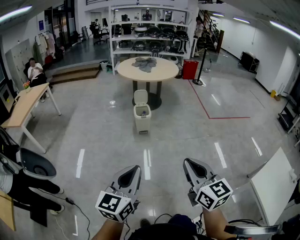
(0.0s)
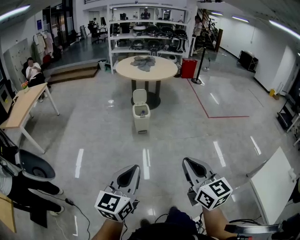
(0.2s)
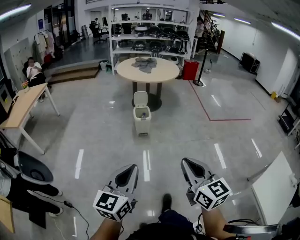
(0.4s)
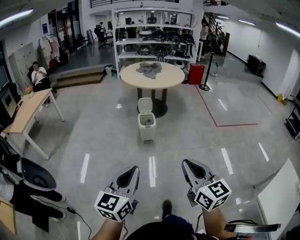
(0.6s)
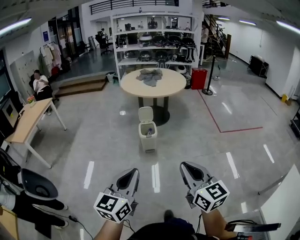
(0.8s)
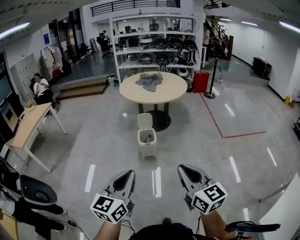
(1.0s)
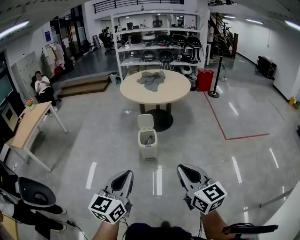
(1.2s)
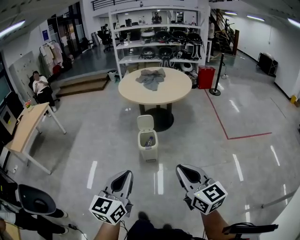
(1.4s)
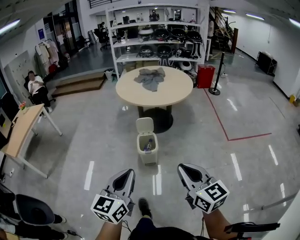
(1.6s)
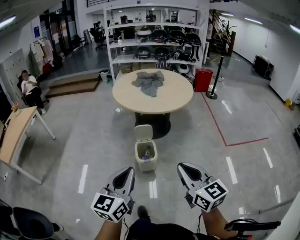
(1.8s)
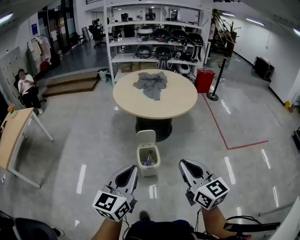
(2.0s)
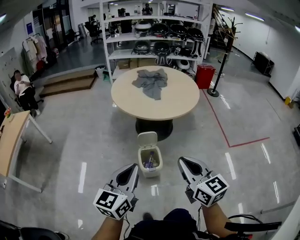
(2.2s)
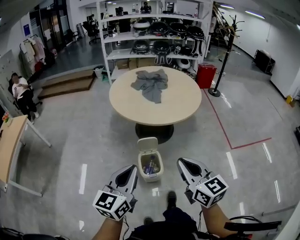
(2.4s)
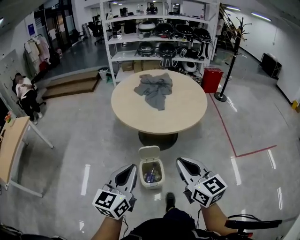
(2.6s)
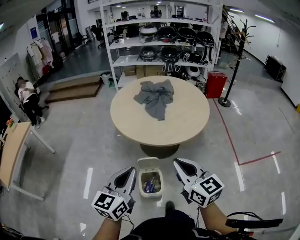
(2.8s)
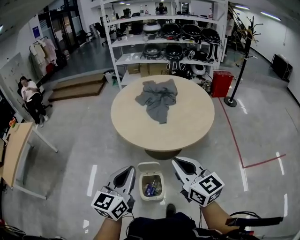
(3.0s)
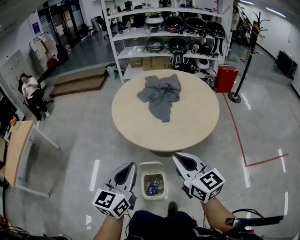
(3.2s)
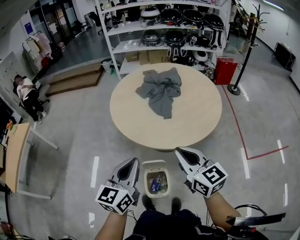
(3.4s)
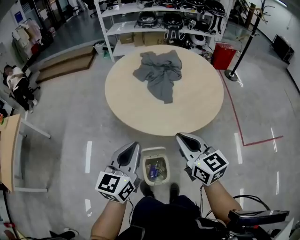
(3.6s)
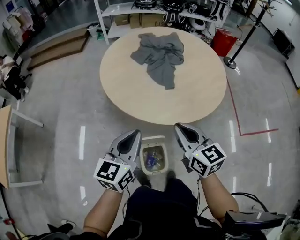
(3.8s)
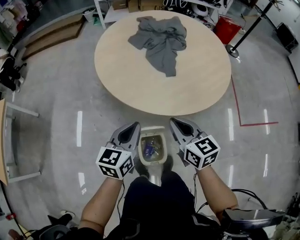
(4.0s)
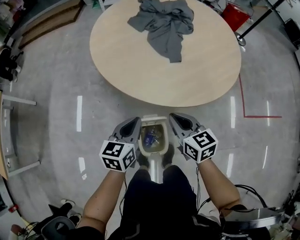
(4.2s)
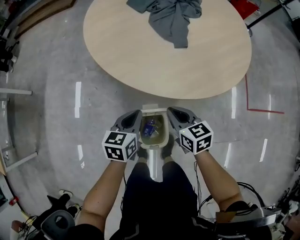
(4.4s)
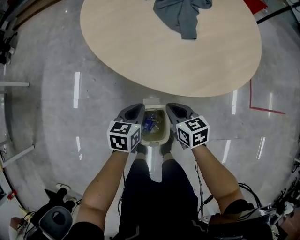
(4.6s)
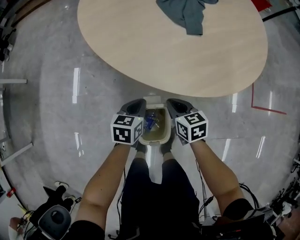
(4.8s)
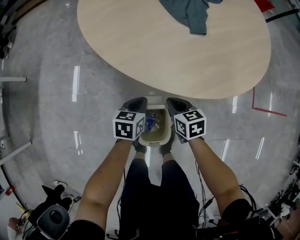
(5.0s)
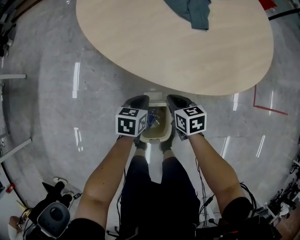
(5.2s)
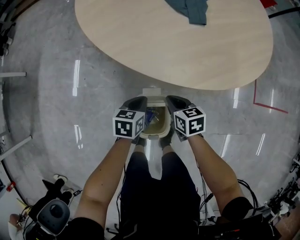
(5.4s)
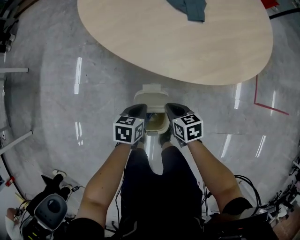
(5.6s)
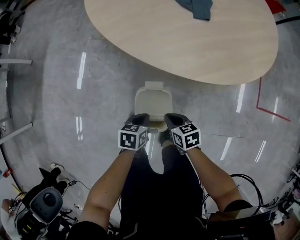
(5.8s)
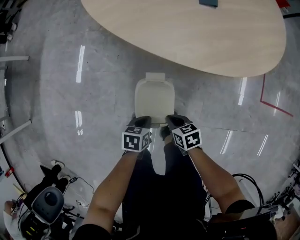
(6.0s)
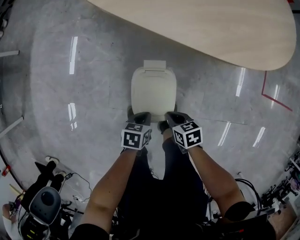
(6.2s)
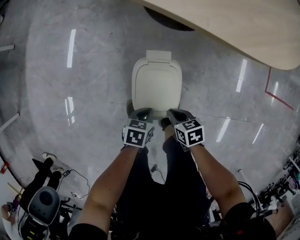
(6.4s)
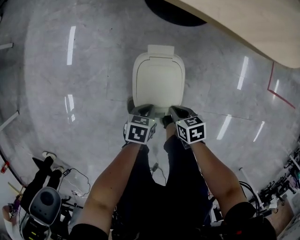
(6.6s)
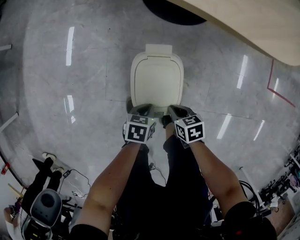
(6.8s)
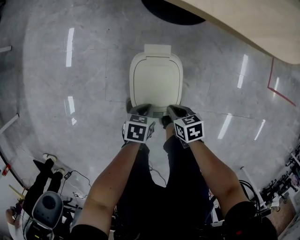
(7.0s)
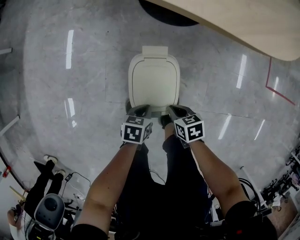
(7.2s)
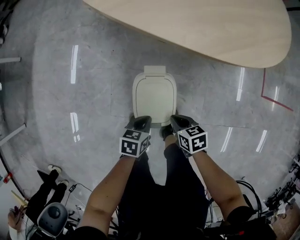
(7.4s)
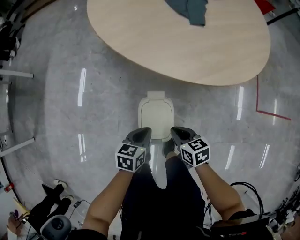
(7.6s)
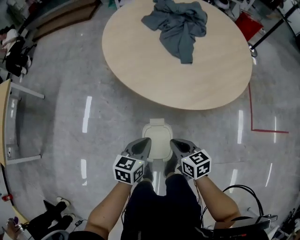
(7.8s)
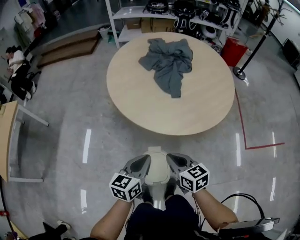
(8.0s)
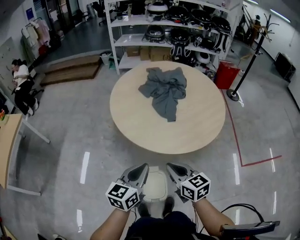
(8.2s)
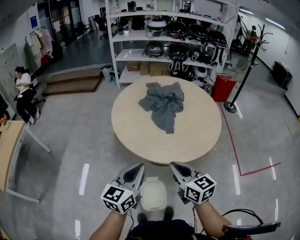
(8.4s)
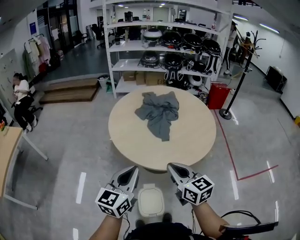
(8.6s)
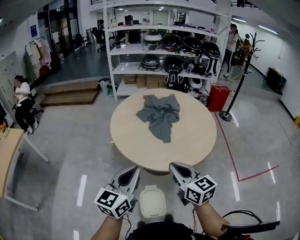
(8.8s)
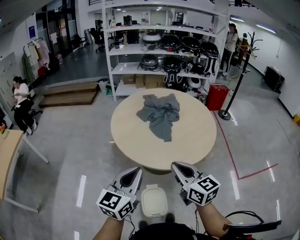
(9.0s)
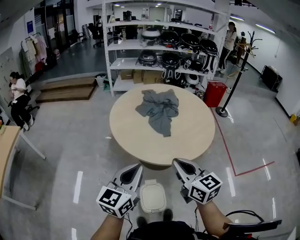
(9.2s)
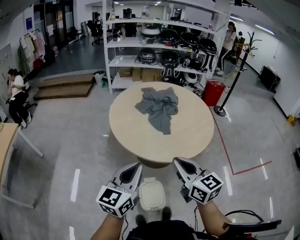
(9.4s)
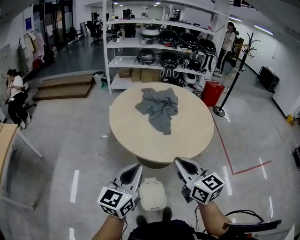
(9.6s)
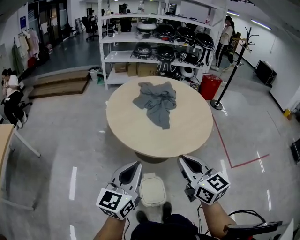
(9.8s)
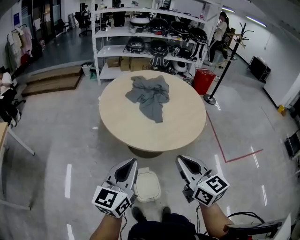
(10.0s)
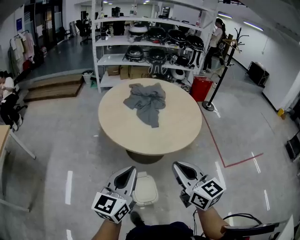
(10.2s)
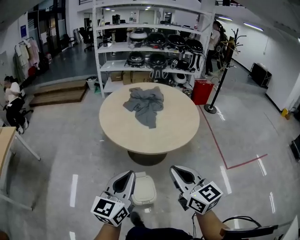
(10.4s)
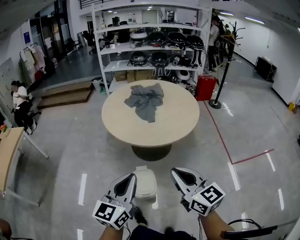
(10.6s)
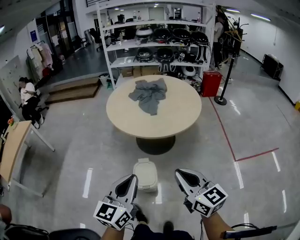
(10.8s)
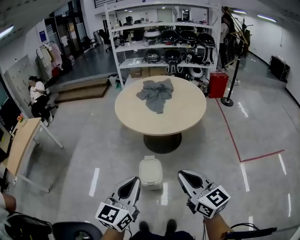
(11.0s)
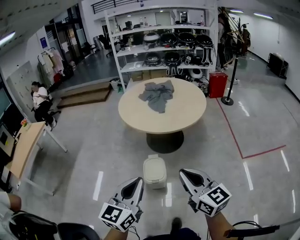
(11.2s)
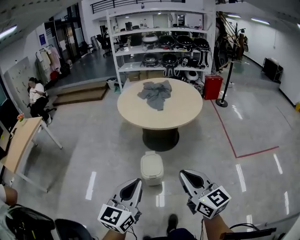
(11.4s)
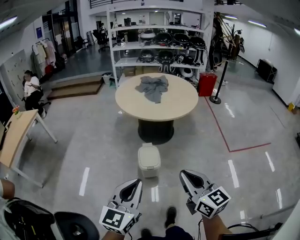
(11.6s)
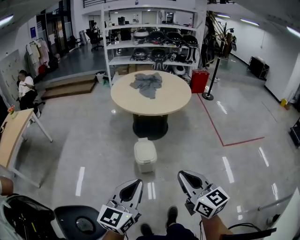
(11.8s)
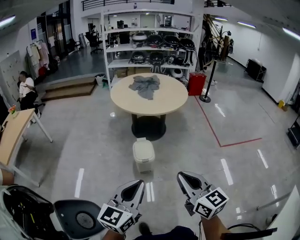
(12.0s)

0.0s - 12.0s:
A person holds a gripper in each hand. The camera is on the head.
0.0s - 1.6s: Both grippers are carried forward, some 40 cm.
1.6s - 3.0s: The pair of grippers is taken forward, roughly 50 cm.
3.0s - 4.4s: Both grippers move downward and forward, roughly 40 cm. The left gripper changes its angle by some 30 degrees, while the right gripper tilts its fingers approximately 30 degrees downward.
4.4s - 6.0s: Both grippers move downward and backward, roughly 30 cm. The right gripper turns by about 30 degrees. Meanwhile the left gripper changes its angle by some 30 degrees.
6.0s - 7.6s: Both grippers travel together upward, roughly 10 cm.
7.6s - 9.0s: The two grippers go about 50 cm upward. The right gripper angles its fingers upward, by approximately 40 degrees. Meanwhile the left gripper angles its fingers upward, by approximately 40 degrees.
9.0s - 10.4s: Both grippers move backward, approximately 15 cm.
10.4s - 12.0s: The pair of grippers is taken backward, about 50 cm.

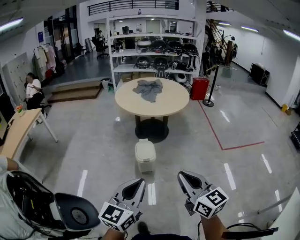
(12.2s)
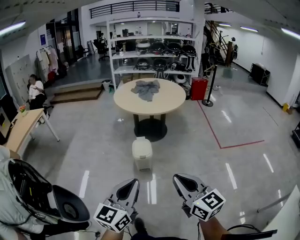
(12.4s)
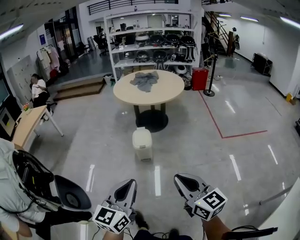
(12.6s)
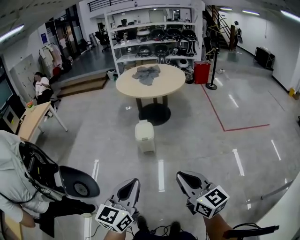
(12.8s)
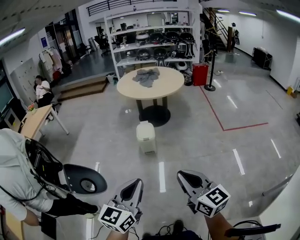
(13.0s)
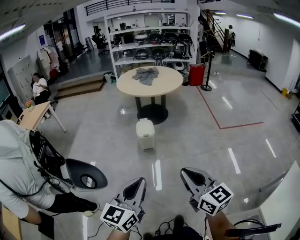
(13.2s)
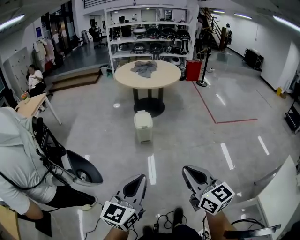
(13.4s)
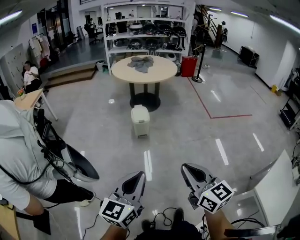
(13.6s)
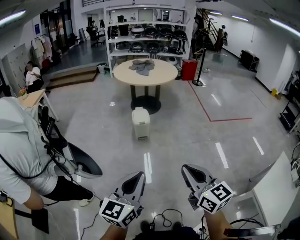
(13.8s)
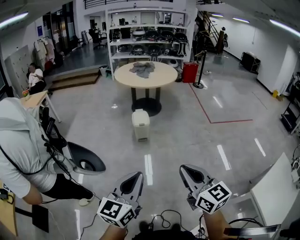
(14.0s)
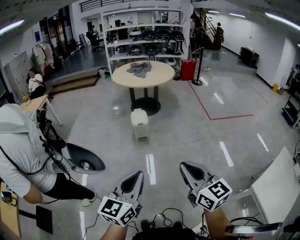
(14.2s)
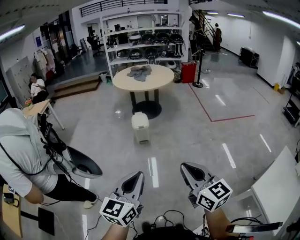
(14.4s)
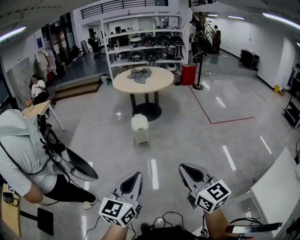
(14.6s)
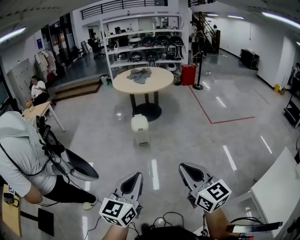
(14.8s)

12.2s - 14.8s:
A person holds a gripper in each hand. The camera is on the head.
12.2s - 13.4s: The grippers both shift backward by approximately 30 cm.
13.4s - 14.8s: The grippers both shift backward and to the right by some 10 cm.

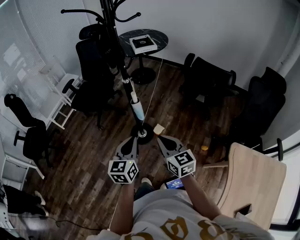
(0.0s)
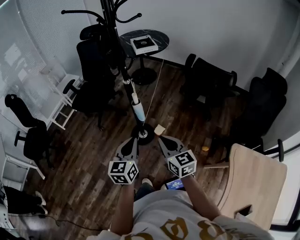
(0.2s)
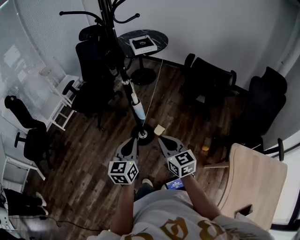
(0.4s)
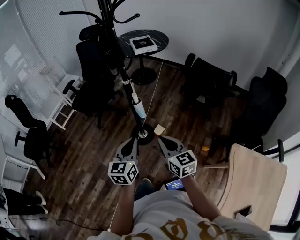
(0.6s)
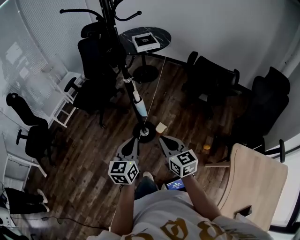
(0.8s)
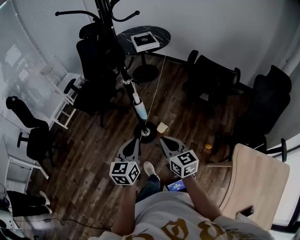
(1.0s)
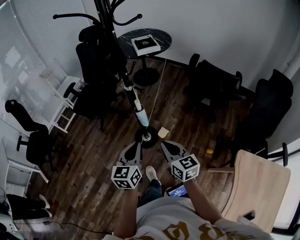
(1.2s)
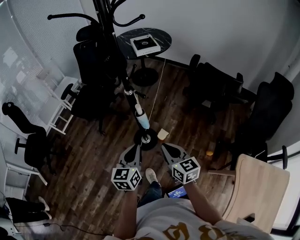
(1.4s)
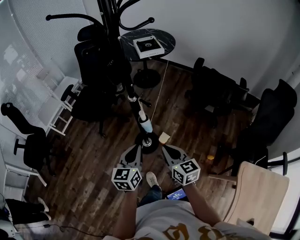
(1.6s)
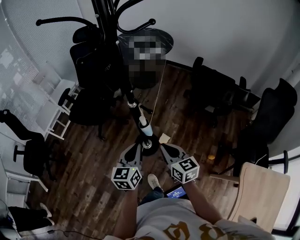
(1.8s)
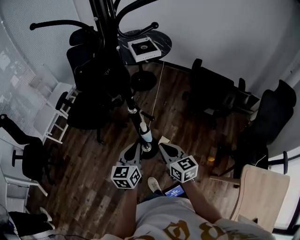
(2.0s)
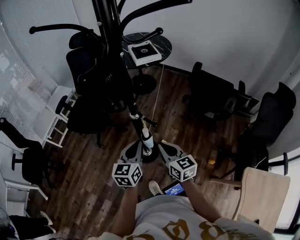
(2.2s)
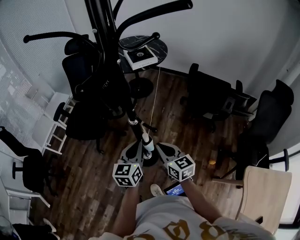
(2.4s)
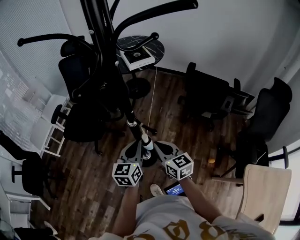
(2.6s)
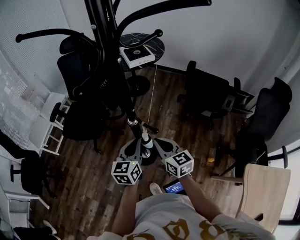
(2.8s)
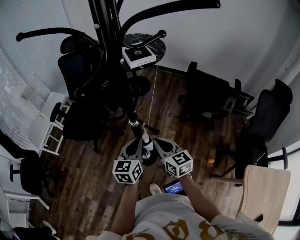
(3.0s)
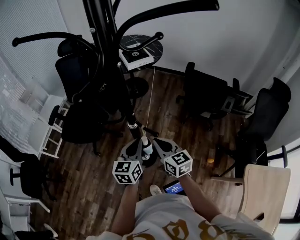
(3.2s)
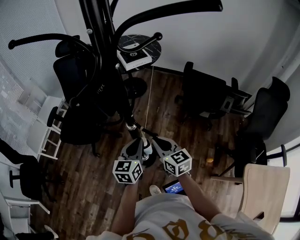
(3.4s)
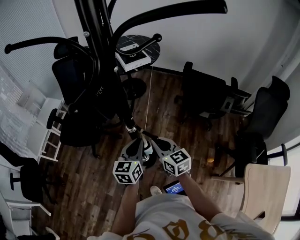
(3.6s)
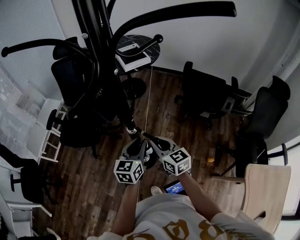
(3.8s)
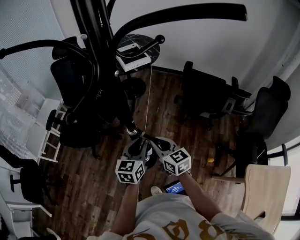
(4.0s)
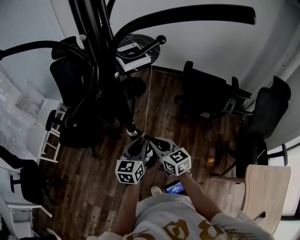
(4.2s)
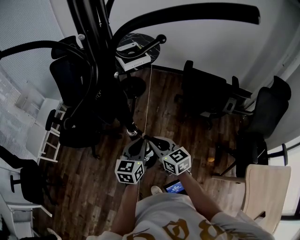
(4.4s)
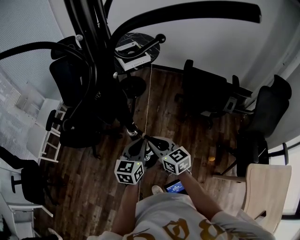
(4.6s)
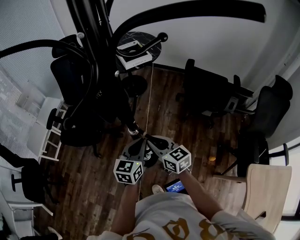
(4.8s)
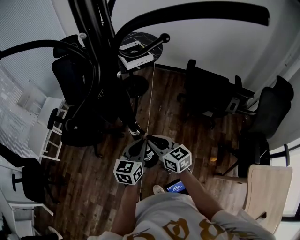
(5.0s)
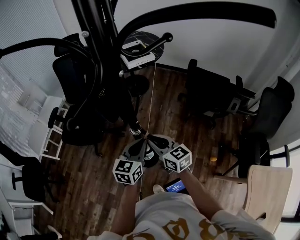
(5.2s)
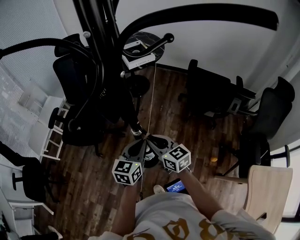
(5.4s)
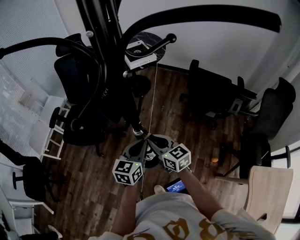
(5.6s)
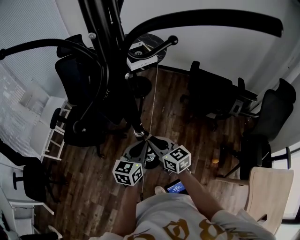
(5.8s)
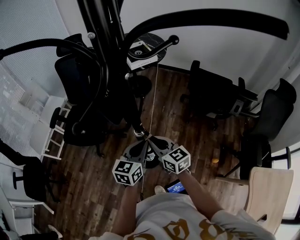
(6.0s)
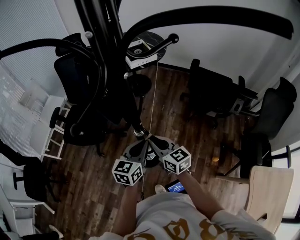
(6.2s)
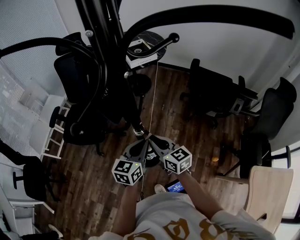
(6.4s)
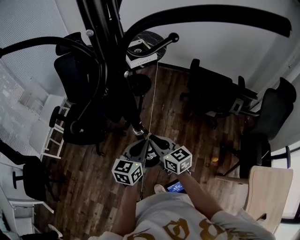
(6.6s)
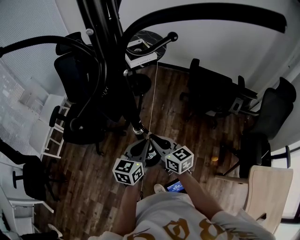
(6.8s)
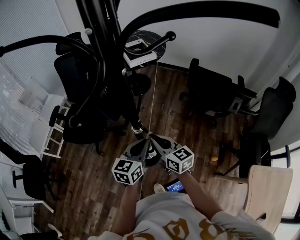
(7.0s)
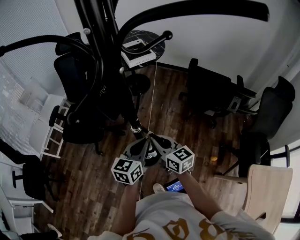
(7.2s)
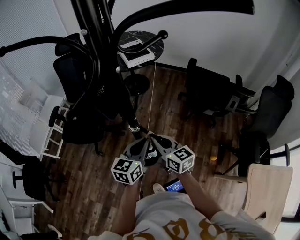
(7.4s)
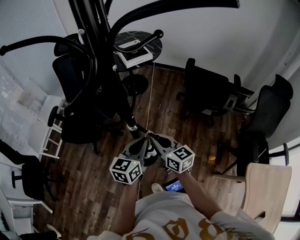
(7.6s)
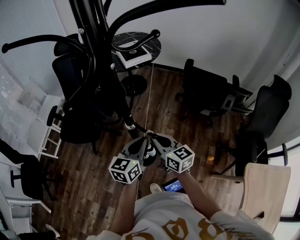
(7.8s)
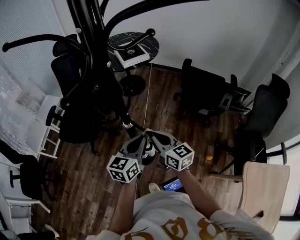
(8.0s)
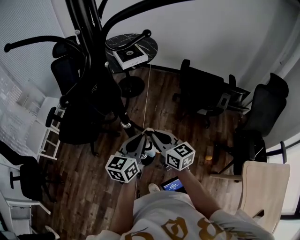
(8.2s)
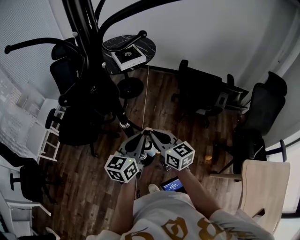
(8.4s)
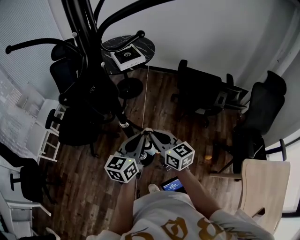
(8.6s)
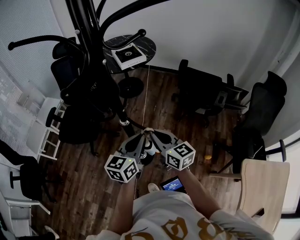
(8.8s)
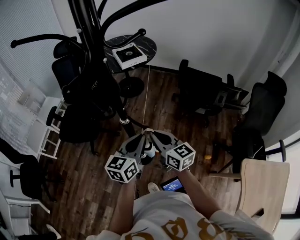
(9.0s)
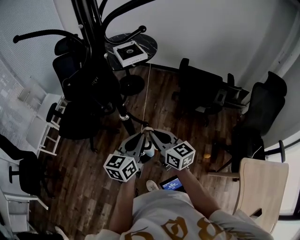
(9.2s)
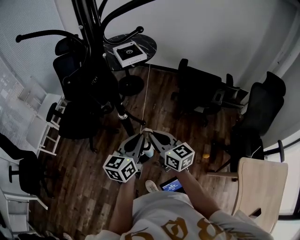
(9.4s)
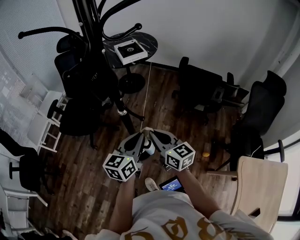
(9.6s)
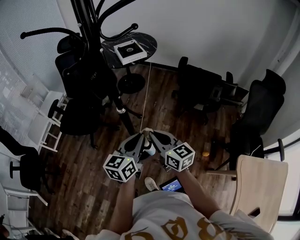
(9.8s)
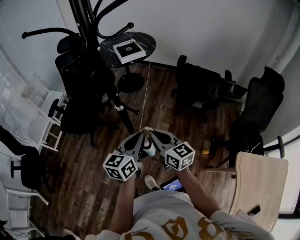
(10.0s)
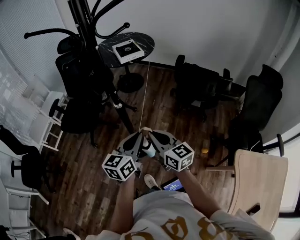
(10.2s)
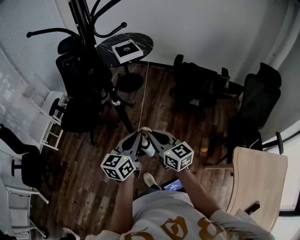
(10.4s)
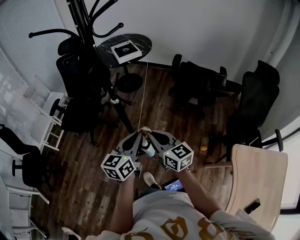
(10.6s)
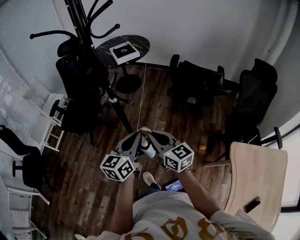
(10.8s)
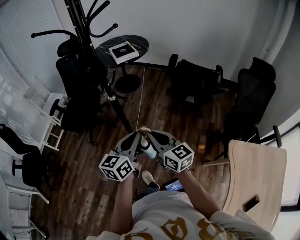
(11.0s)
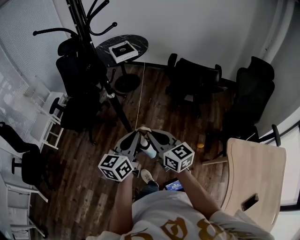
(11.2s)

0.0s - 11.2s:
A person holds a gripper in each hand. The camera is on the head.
0.0s - 1.6s: Both grippers move forward, approximately 15 cm.
1.6s - 3.2s: The two grippers go about 20 cm forward.
3.2s - 4.8s: The right gripper shifts by approximately 5 cm.
4.8s - 6.4s: The grippers stay close to where they were, moving slightly.
6.4s - 8.0s: The left gripper changes place by roughly 5 cm, while the right gripper moves to the right, about 5 cm.
8.0s - 9.6s: The grippers both shift backward by approximately 5 cm.
9.6s - 11.2s: The two grippers go about 15 cm backward.
